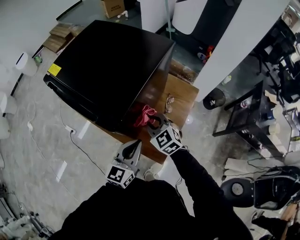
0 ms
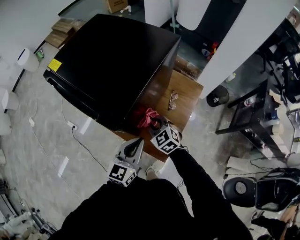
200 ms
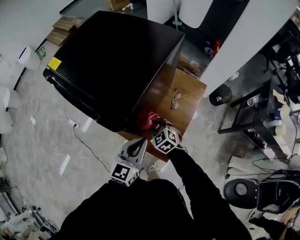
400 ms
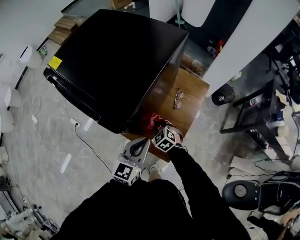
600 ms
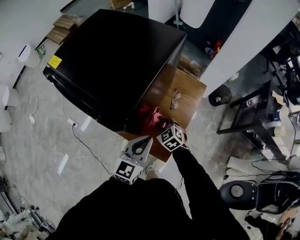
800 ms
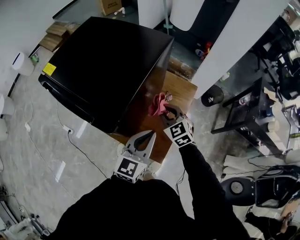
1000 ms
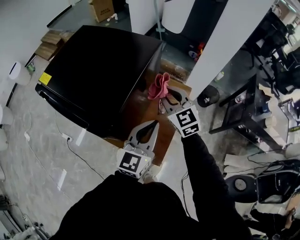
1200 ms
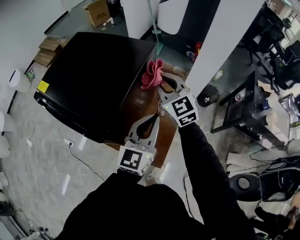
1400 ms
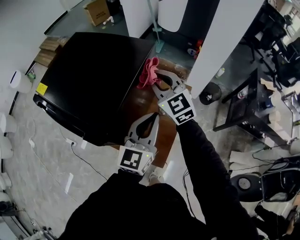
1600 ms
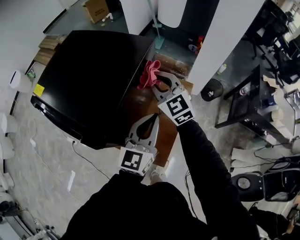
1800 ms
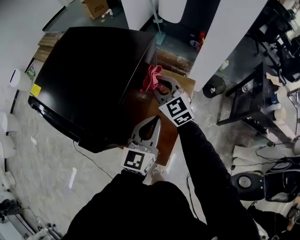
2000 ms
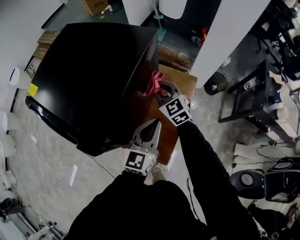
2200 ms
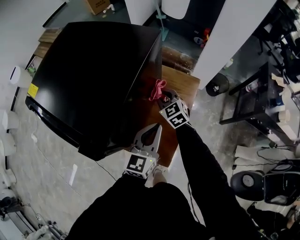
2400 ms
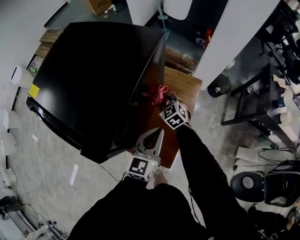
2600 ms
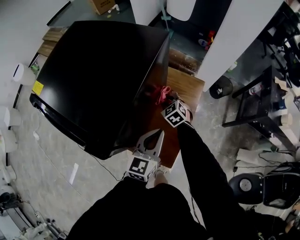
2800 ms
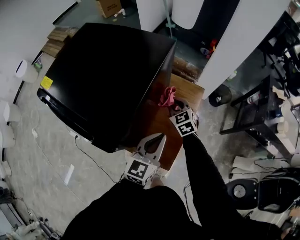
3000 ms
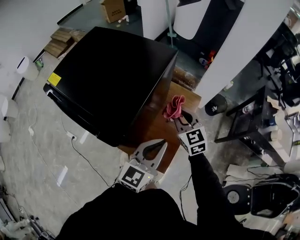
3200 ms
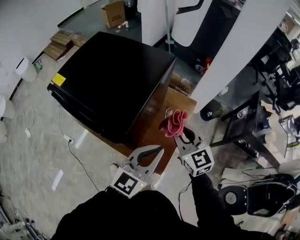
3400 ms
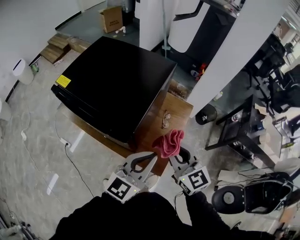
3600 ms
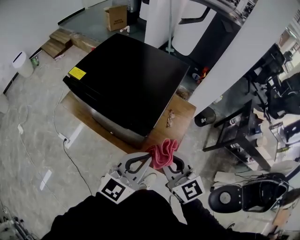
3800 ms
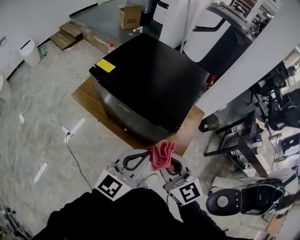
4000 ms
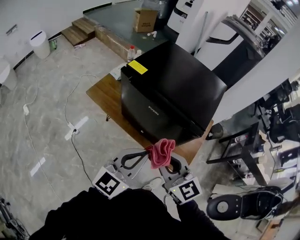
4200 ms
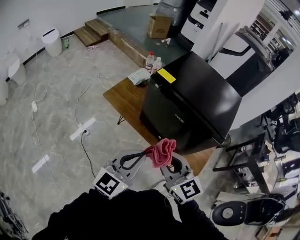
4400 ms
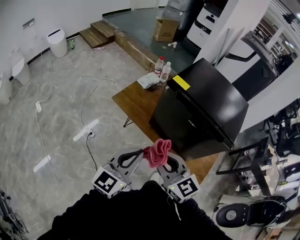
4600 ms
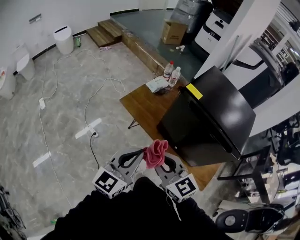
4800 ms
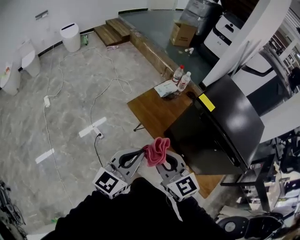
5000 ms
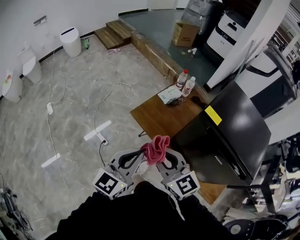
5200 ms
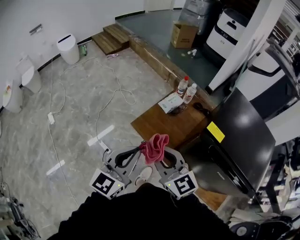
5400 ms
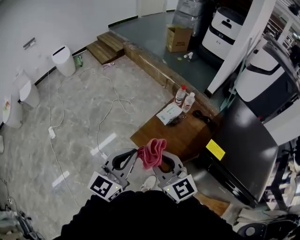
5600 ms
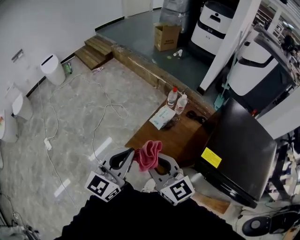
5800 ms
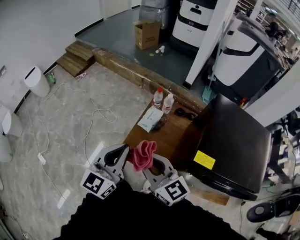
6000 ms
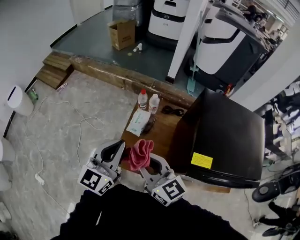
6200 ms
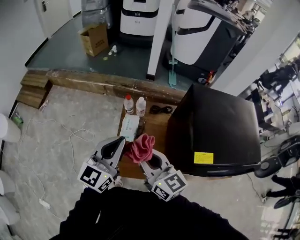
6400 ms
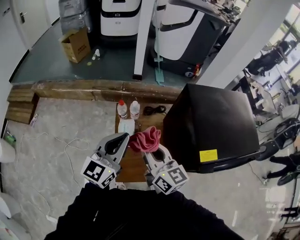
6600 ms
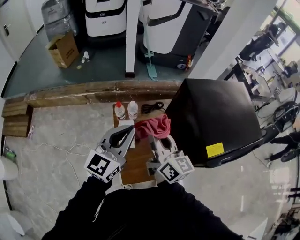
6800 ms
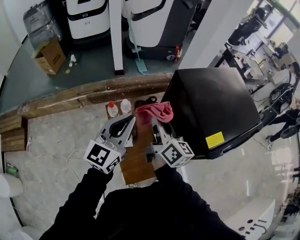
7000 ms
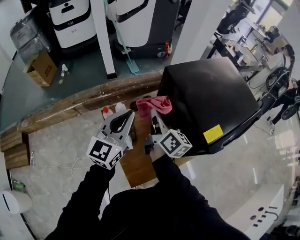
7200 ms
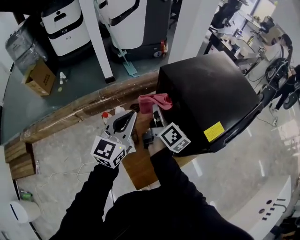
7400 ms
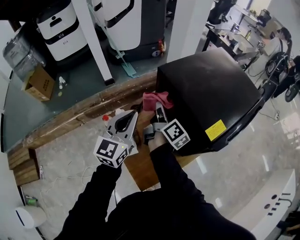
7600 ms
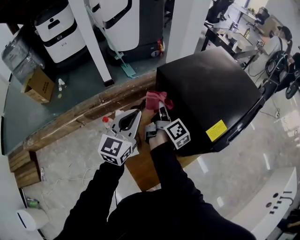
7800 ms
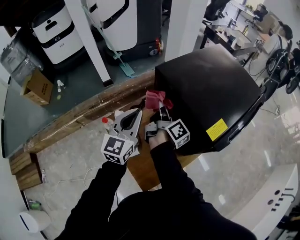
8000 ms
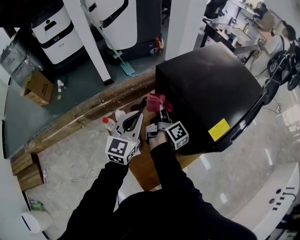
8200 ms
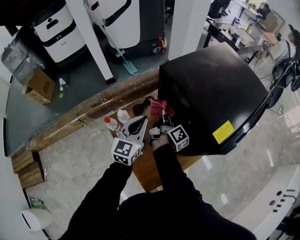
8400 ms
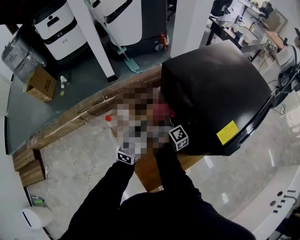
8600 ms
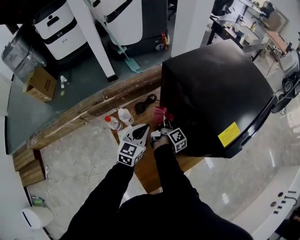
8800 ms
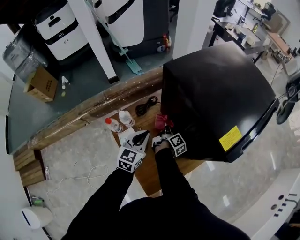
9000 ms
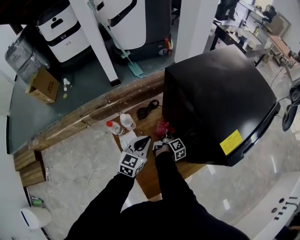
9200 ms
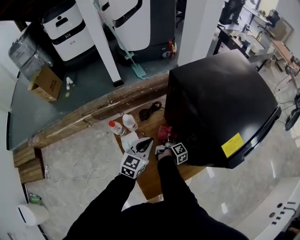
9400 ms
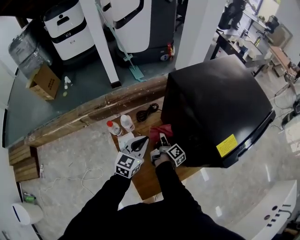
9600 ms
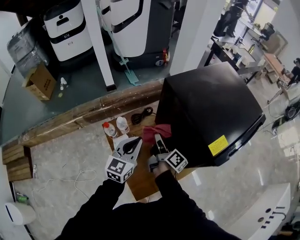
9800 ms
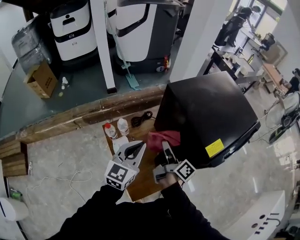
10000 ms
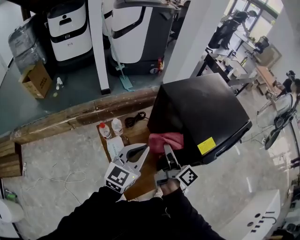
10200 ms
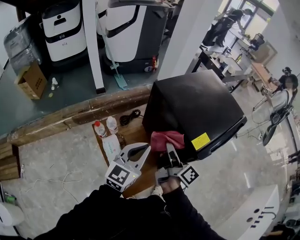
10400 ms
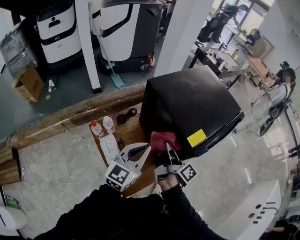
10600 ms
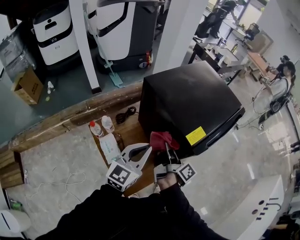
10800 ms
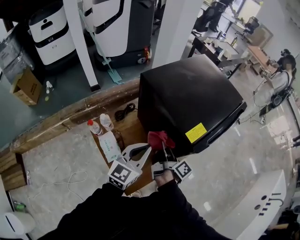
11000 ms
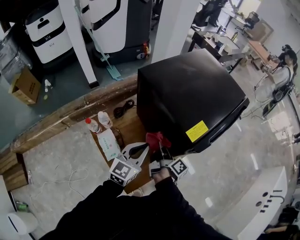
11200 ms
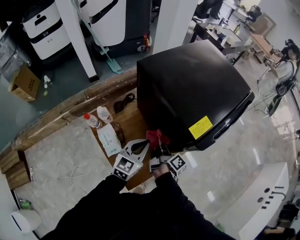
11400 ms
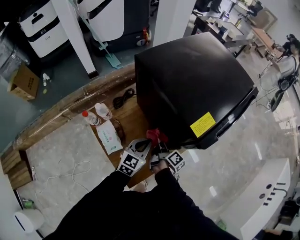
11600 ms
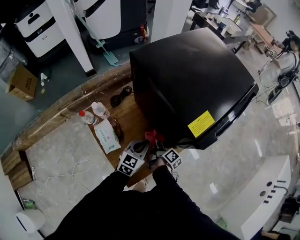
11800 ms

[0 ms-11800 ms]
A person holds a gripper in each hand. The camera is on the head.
0 ms to 1400 ms: The left gripper shifts some 20 cm to the right, upward and forward, while the right gripper moves upward, forward and to the right, some 25 cm, and turns by approximately 20 degrees.
1400 ms to 3000 ms: The right gripper heads downward, covering about 20 cm, and swivels about 30 degrees. The left gripper travels downward by approximately 10 cm.
3000 ms to 4400 ms: Both grippers are carried to the left and backward, about 60 cm. The right gripper is displaced upward by about 30 cm, and rotates some 30 degrees.
4400 ms to 6000 ms: Both grippers are carried forward and to the left, some 50 cm.
6000 ms to 7400 ms: The left gripper ends up some 30 cm from where it was, and changes its angle by approximately 50 degrees, while the right gripper moves roughly 35 cm, and rotates approximately 90 degrees.
7400 ms to 8800 ms: The grippers both shift downward by roughly 25 cm. The right gripper turns by some 30 degrees.
8800 ms to 10400 ms: The two grippers go roughly 25 cm upward and backward. The right gripper rotates some 20 degrees.
10400 ms to 11800 ms: The grippers both shift downward by roughly 30 cm. The left gripper changes its angle by approximately 20 degrees, while the right gripper turns by some 30 degrees.

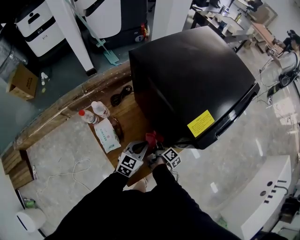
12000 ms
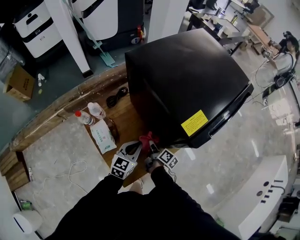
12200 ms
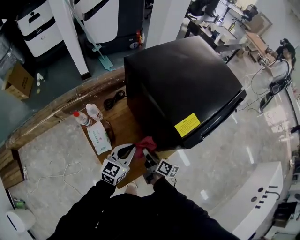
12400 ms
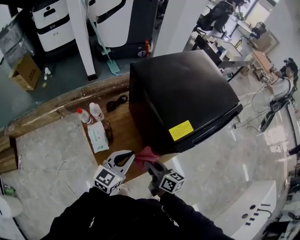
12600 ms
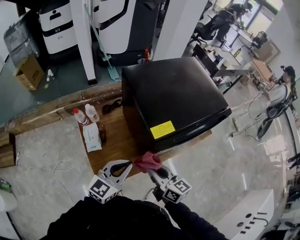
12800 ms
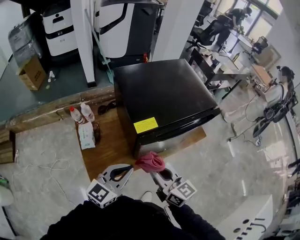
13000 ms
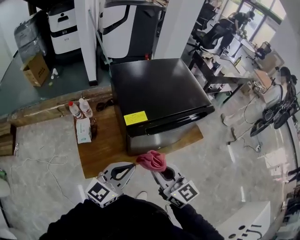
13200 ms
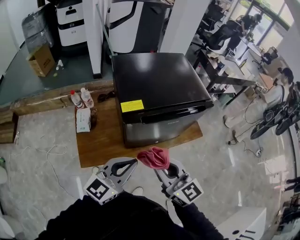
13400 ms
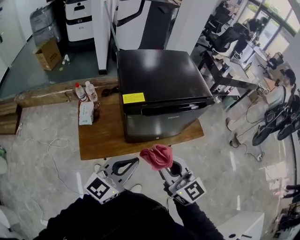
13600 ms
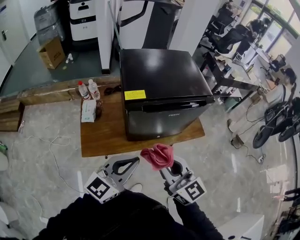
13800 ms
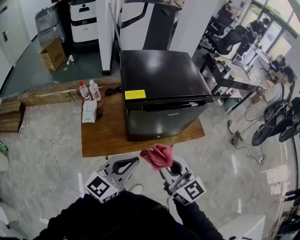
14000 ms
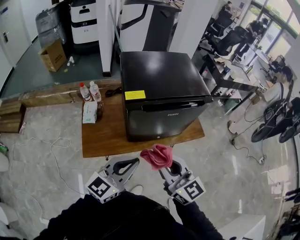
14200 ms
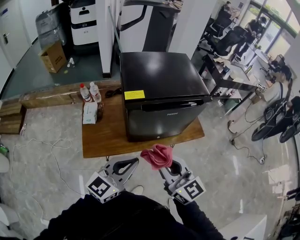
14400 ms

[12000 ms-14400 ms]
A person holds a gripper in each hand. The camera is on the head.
12000 ms to 13200 ms: The grippers both shift upward by about 35 cm. The left gripper rotates about 20 degrees, while the right gripper rotates around the line of its fingers by approximately 70 degrees, counterclockwise from behind.
13200 ms to 14400 ms: Both grippers move backward and to the right, approximately 10 cm.

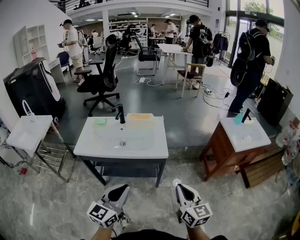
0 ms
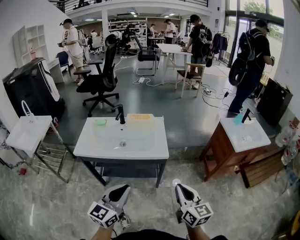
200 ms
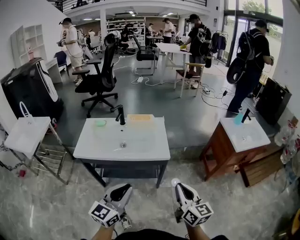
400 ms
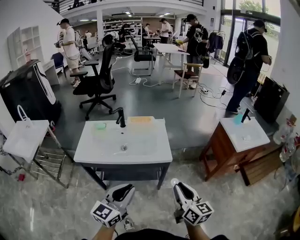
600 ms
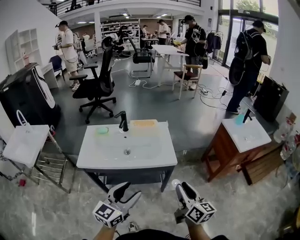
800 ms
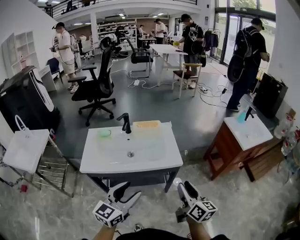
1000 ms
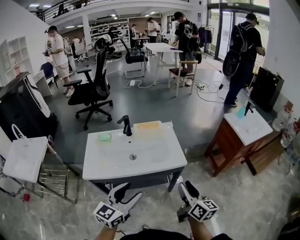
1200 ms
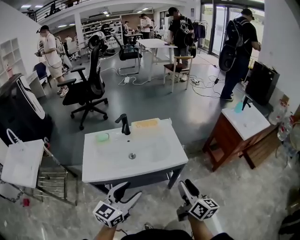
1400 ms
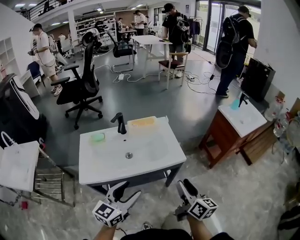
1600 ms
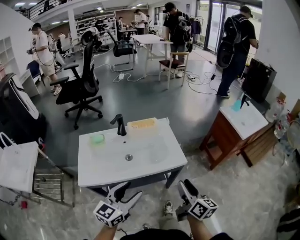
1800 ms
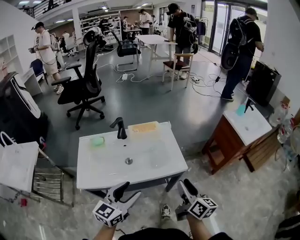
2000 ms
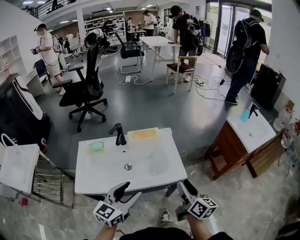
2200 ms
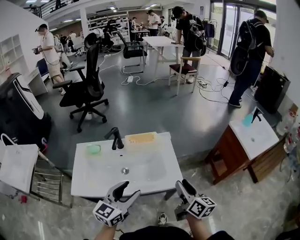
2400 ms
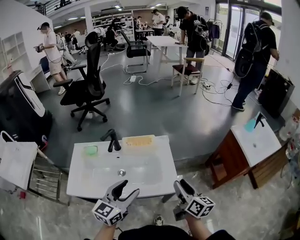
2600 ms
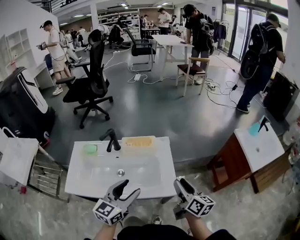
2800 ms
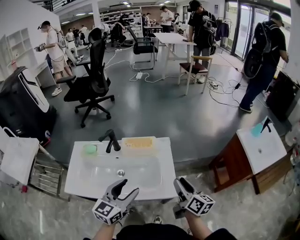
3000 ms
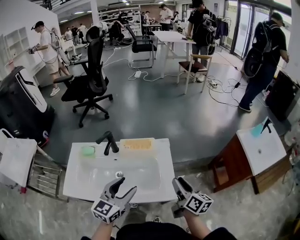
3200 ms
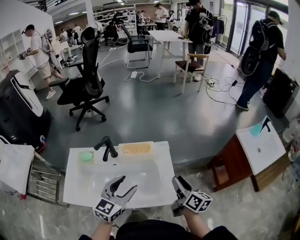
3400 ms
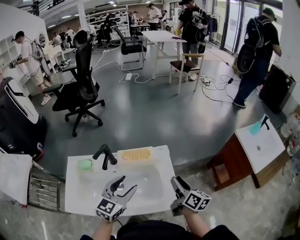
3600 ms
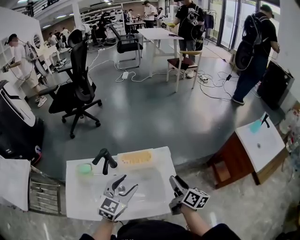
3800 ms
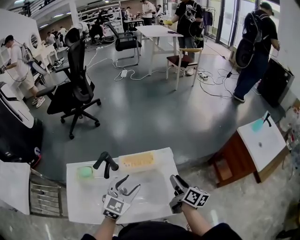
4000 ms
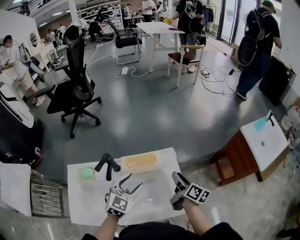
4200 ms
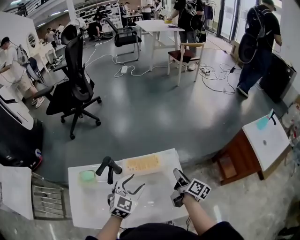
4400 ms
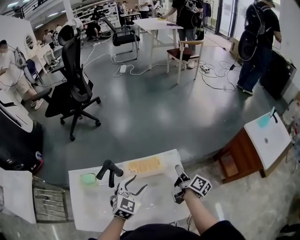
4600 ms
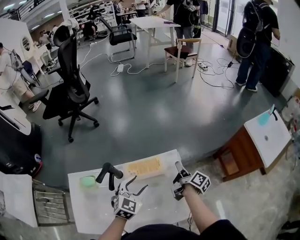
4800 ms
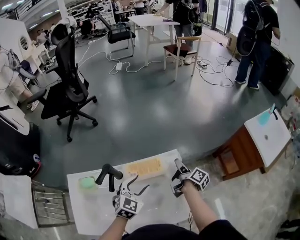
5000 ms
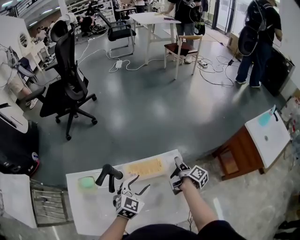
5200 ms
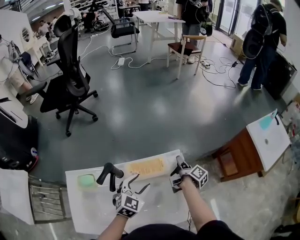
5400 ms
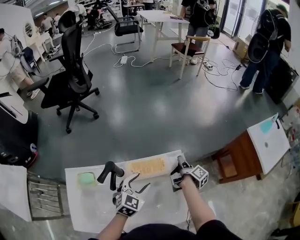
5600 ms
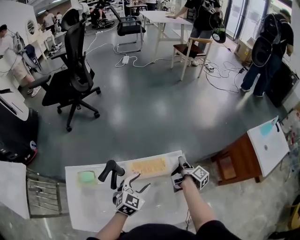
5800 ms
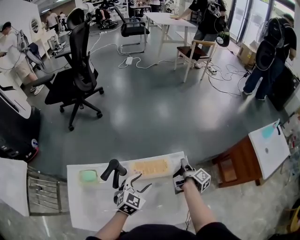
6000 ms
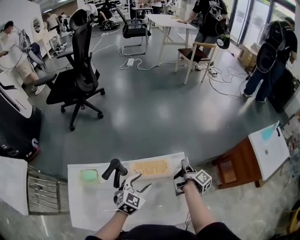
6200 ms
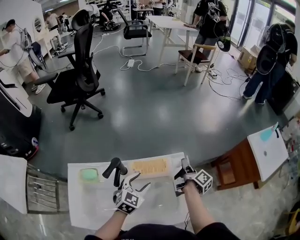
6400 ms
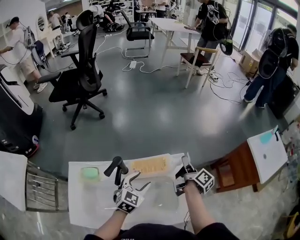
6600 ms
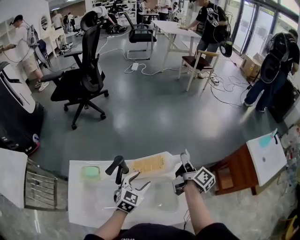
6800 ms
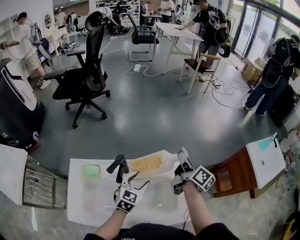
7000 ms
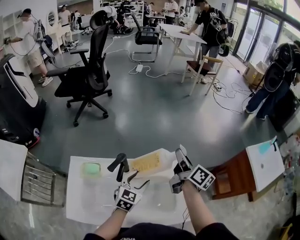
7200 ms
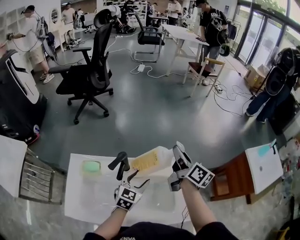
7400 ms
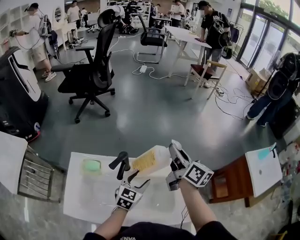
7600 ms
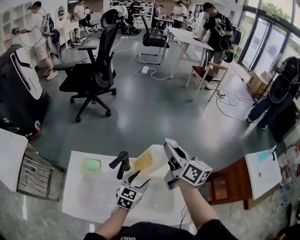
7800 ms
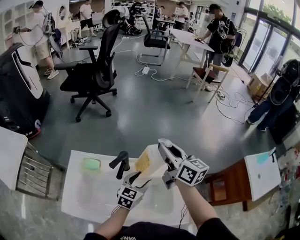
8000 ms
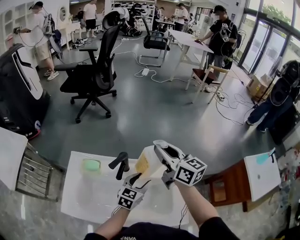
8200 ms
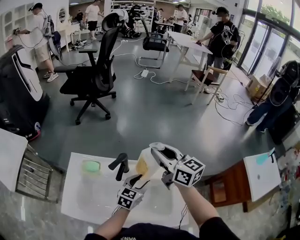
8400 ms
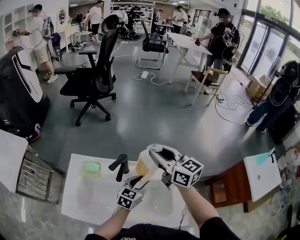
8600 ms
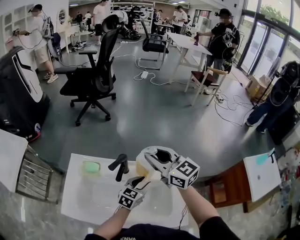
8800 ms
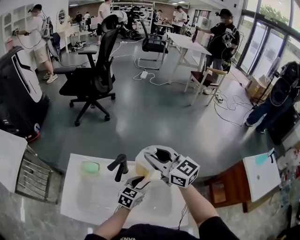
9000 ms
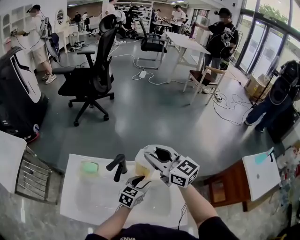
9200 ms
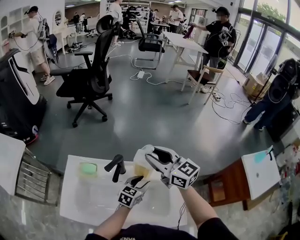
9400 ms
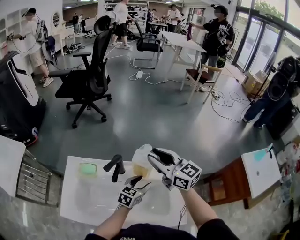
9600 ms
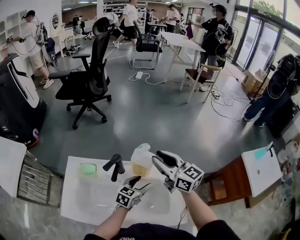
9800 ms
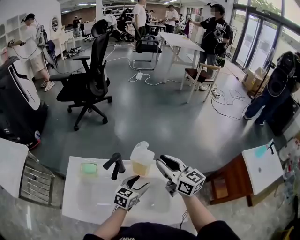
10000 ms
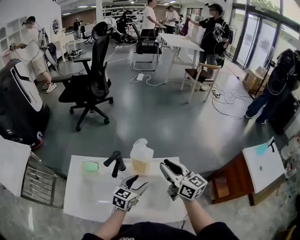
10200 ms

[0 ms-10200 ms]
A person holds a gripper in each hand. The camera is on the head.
0 ms to 1400 ms: Both grippers travel together to the left and forward, about 20 cm. The right gripper swivels approximately 30 degrees, and opens up; the left gripper opens up.
1400 ms to 3000 ms: Both grippers move forward, about 25 cm.
3000 ms to 4400 ms: Both grippers move forward and downward, about 20 cm. The right gripper rotates some 30 degrees. The left gripper turns by roughly 30 degrees.
4400 ms to 5800 ms: The left gripper moves downward, roughly 5 cm. Meanwhile the right gripper goes some 10 cm forward and downward, and swivels roughly 30 degrees.
5800 ms to 7200 ms: The right gripper goes roughly 20 cm upward and to the left, and turns by approximately 40 degrees.
7200 ms to 8800 ms: The left gripper closes its fingers; the right gripper heads to the left and upward, covering about 20 cm, and turns by about 60 degrees.
8800 ms to 10200 ms: The right gripper goes approximately 15 cm to the right, backward and downward, and changes its angle by some 20 degrees.
